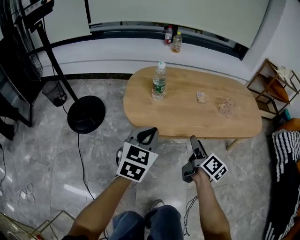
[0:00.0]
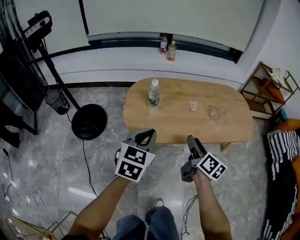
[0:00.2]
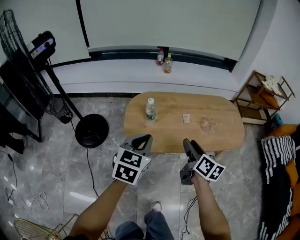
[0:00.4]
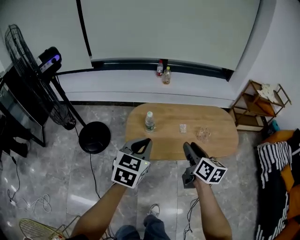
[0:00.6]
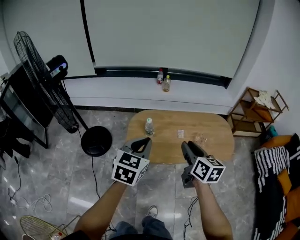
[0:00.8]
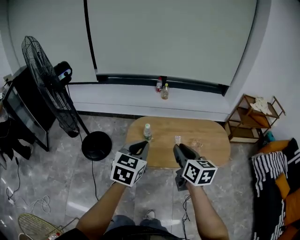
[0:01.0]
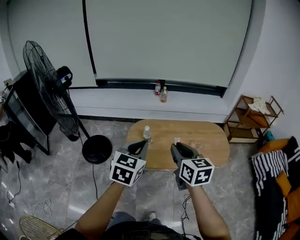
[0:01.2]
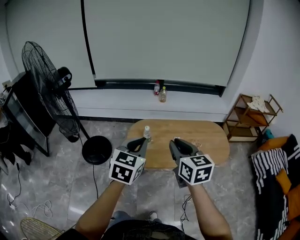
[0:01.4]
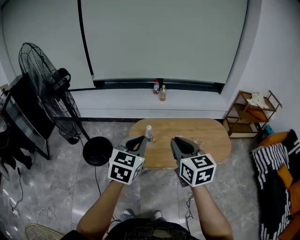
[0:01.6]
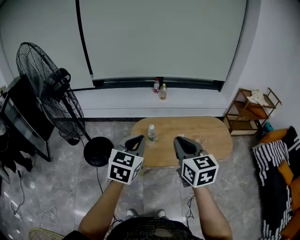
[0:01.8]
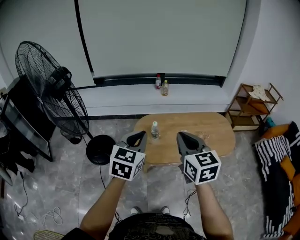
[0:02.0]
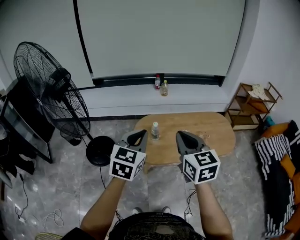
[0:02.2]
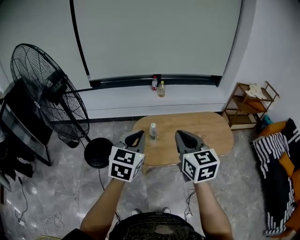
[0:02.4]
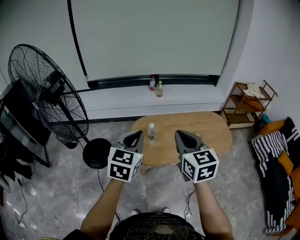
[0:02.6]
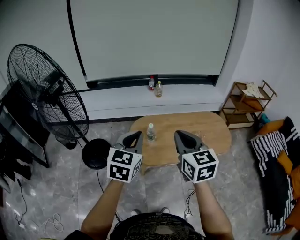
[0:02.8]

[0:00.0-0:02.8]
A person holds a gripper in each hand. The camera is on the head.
0:00.0 to 0:01.4: Both grippers travel together upward, approximately 50 cm. The right gripper twists about 50 degrees counterclockwise, seen from behind, and closes its fingers.
0:01.4 to 0:02.8: Both grippers move to the left, about 5 cm.

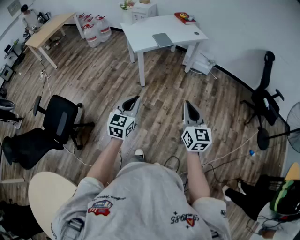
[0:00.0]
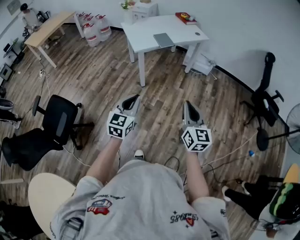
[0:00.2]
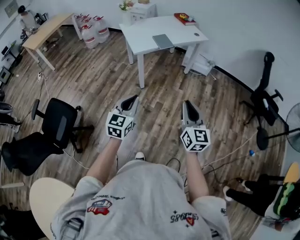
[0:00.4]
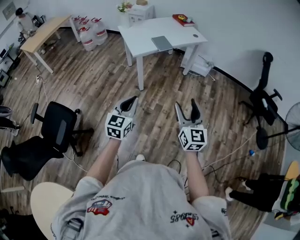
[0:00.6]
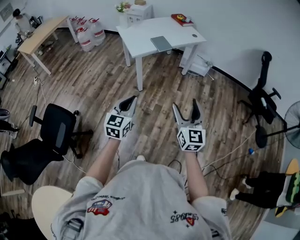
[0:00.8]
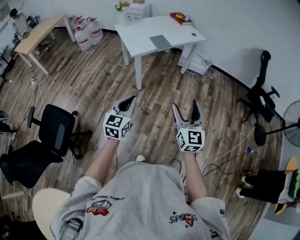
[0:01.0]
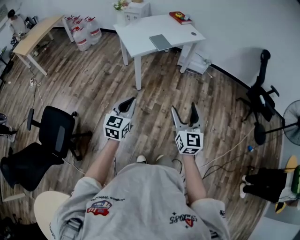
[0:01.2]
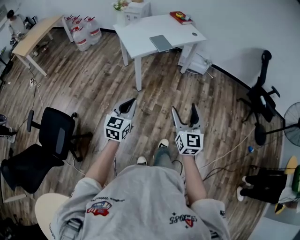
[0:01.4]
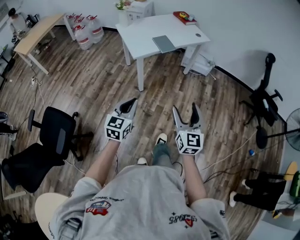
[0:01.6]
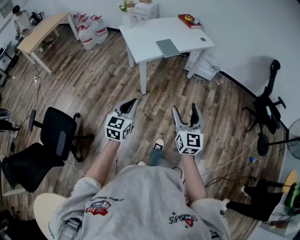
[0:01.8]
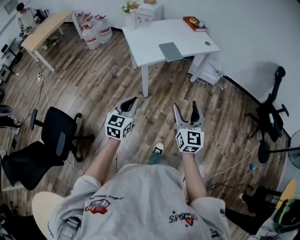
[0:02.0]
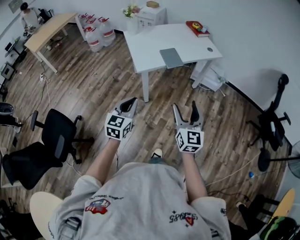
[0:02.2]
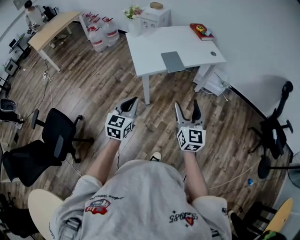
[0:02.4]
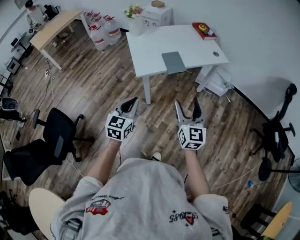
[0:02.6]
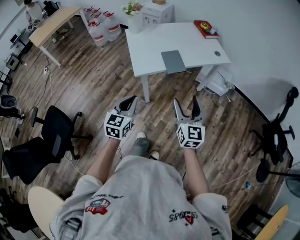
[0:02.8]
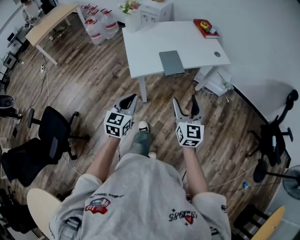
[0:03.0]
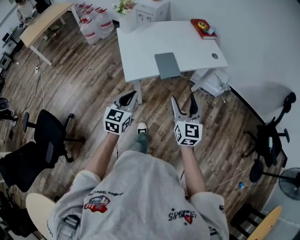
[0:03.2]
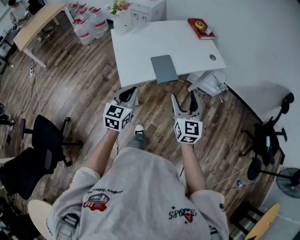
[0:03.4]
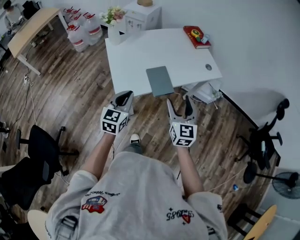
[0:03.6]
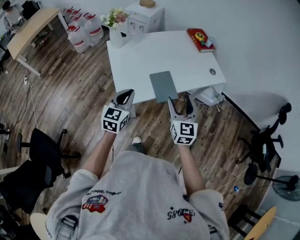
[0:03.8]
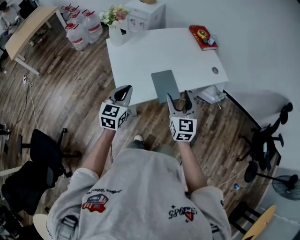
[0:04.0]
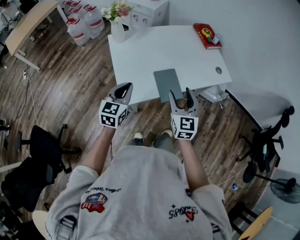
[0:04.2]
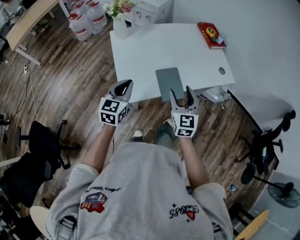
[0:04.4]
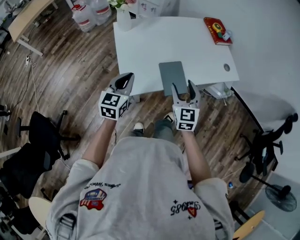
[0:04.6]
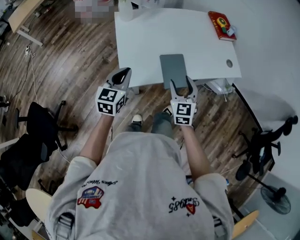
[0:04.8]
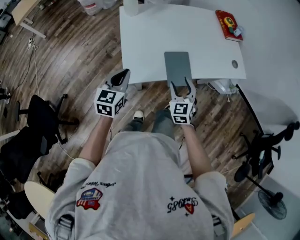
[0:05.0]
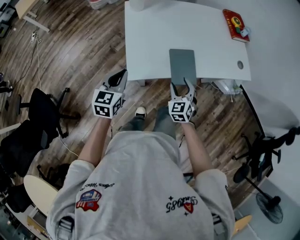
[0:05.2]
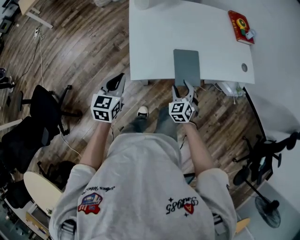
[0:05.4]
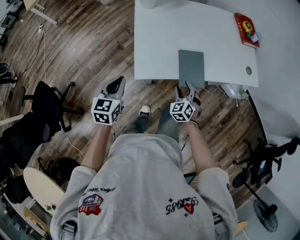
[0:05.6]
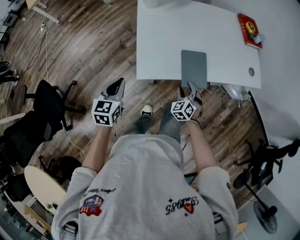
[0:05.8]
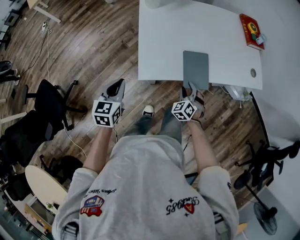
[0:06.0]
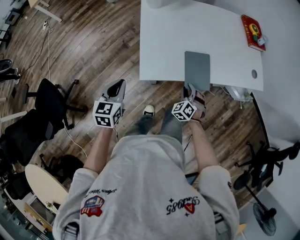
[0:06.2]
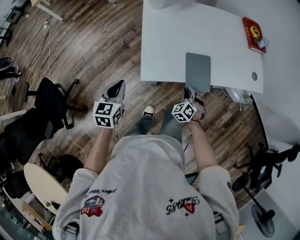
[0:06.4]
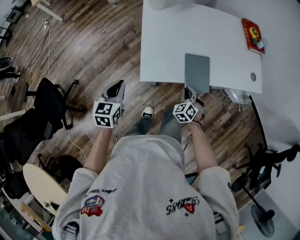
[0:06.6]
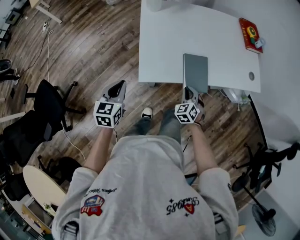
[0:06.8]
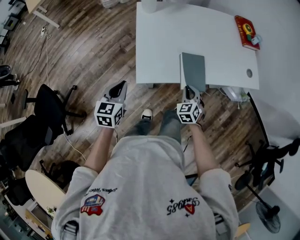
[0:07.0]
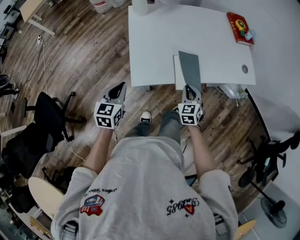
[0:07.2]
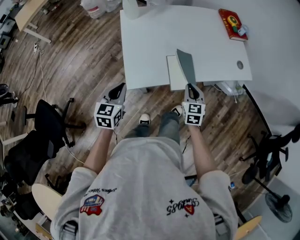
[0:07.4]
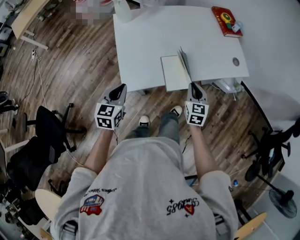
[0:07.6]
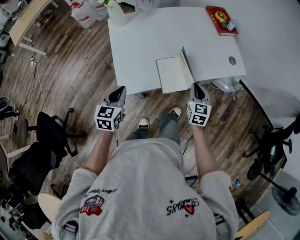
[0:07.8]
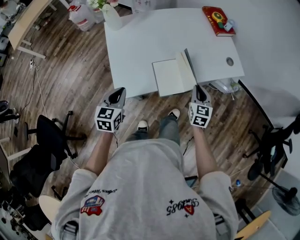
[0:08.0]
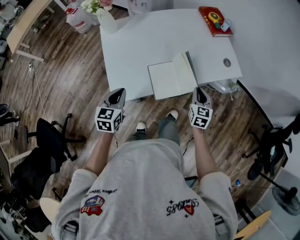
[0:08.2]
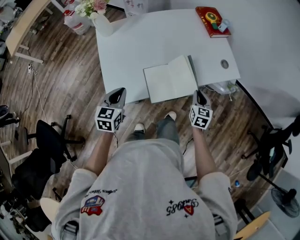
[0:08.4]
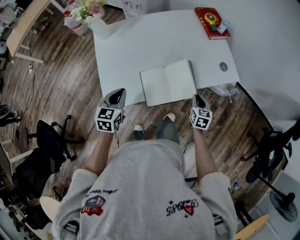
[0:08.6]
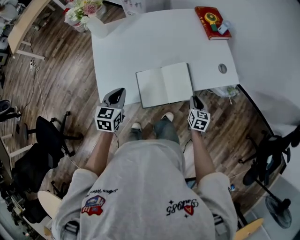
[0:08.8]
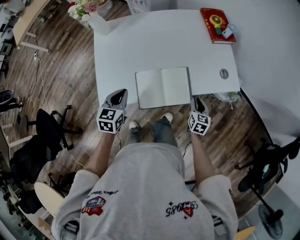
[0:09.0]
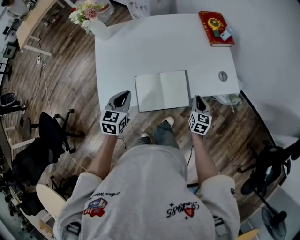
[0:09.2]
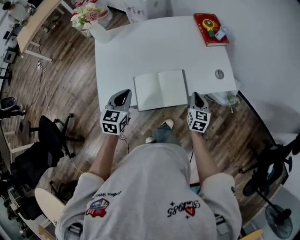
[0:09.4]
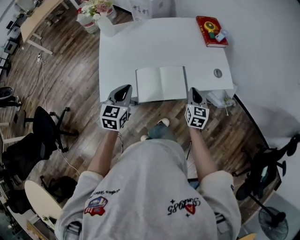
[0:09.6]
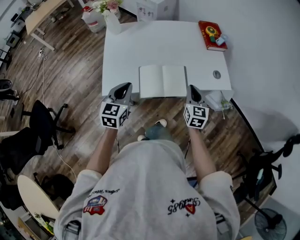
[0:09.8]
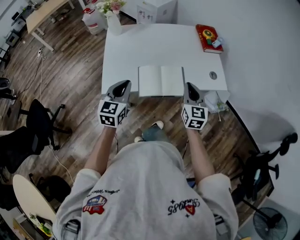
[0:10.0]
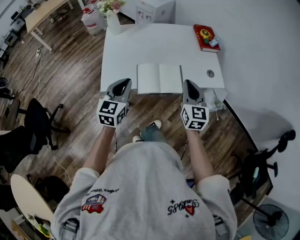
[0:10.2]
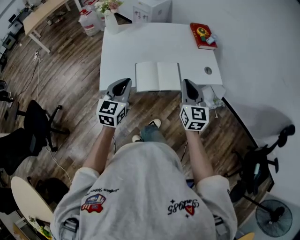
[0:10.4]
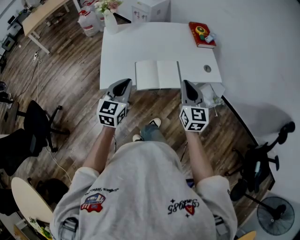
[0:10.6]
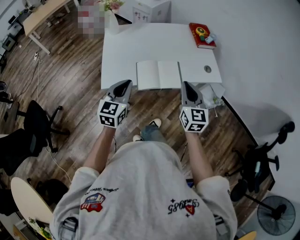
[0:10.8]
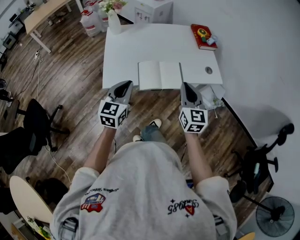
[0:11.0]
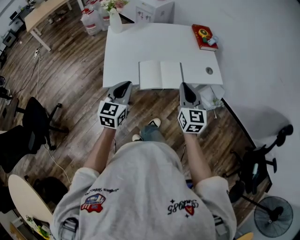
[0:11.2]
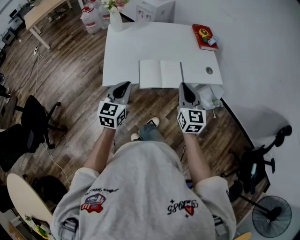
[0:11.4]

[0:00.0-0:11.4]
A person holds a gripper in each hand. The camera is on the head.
0:00.0 to 0:01.4: The left gripper moves forward and to the left, roughly 15 cm. Meanwhile the right gripper moves to the left and forward, about 15 cm, and opens up.
0:01.4 to 0:02.8: Both grippers move forward, some 35 cm.
0:02.8 to 0:04.2: The pair of grippers is taken forward, some 40 cm.
0:04.2 to 0:05.6: The right gripper moves downward, some 25 cm, and turns by approximately 50 degrees, while the left gripper travels downward, to the left and backward by some 15 cm, and changes its angle by approximately 20 degrees.
0:05.6 to 0:07.2: The right gripper moves upward, approximately 5 cm, changes its angle by some 20 degrees, and closes its fingers.
0:07.2 to 0:08.6: The grippers both shift to the right and forward by about 25 cm. The right gripper rotates about 30 degrees.
0:08.6 to 0:10.0: The left gripper goes roughly 20 cm backward, upward and to the right, while the right gripper is displaced upward by roughly 25 cm, and turns by roughly 30 degrees.
0:10.0 to 0:11.4: The right gripper shifts some 10 cm backward and upward. Meanwhile the left gripper shifts roughly 10 cm backward.

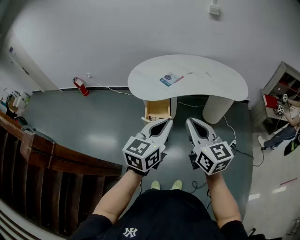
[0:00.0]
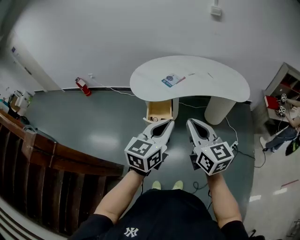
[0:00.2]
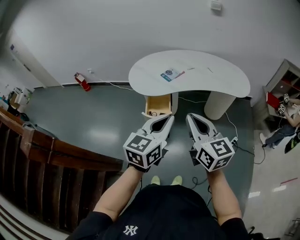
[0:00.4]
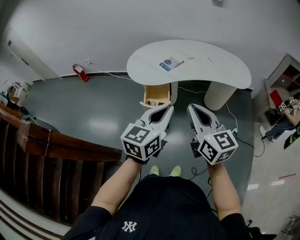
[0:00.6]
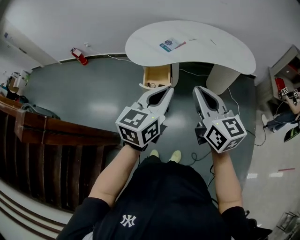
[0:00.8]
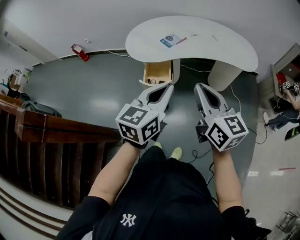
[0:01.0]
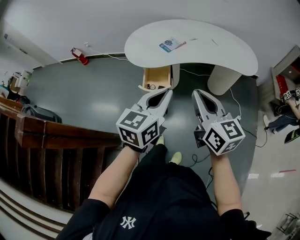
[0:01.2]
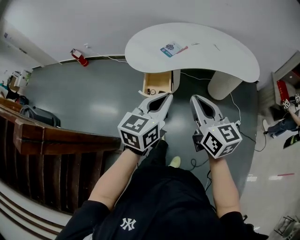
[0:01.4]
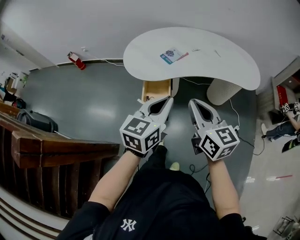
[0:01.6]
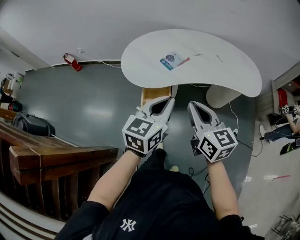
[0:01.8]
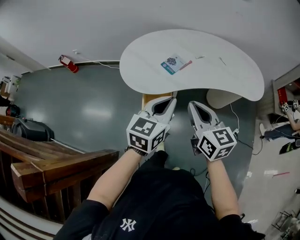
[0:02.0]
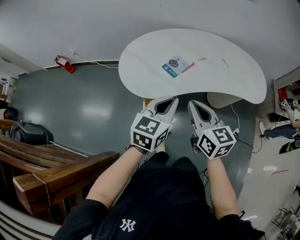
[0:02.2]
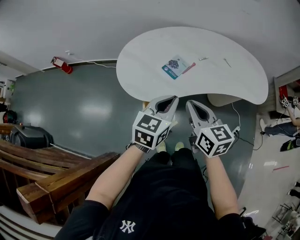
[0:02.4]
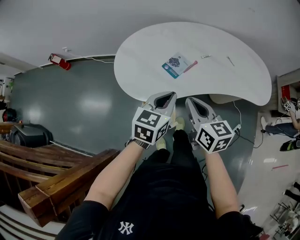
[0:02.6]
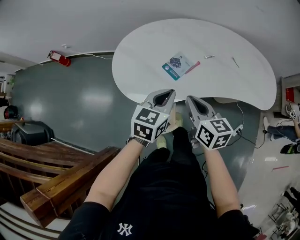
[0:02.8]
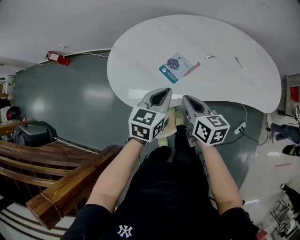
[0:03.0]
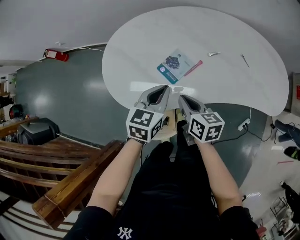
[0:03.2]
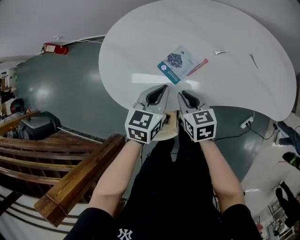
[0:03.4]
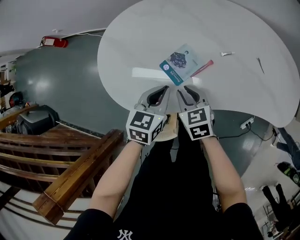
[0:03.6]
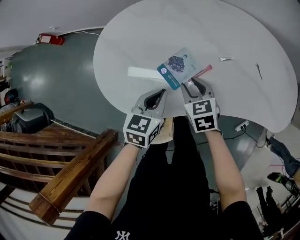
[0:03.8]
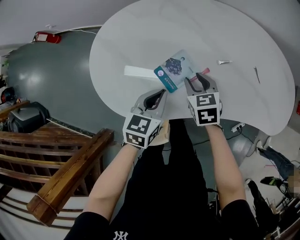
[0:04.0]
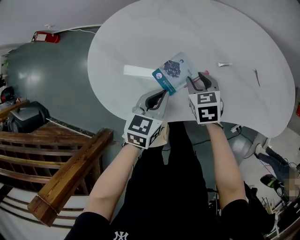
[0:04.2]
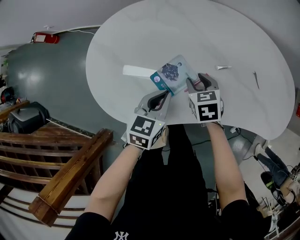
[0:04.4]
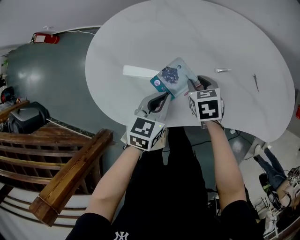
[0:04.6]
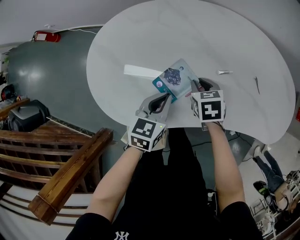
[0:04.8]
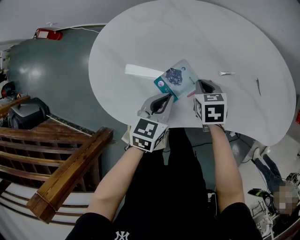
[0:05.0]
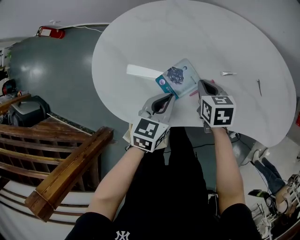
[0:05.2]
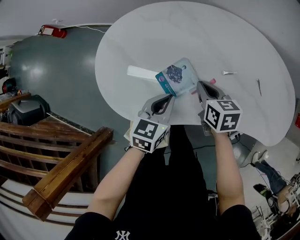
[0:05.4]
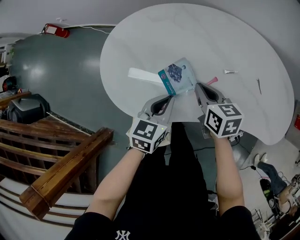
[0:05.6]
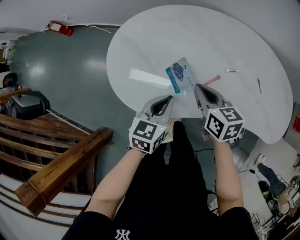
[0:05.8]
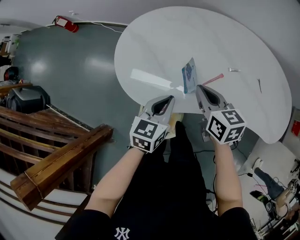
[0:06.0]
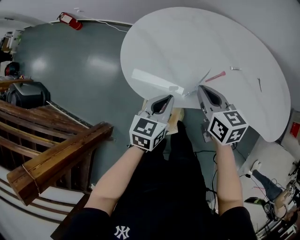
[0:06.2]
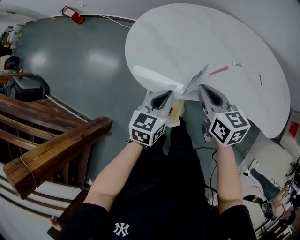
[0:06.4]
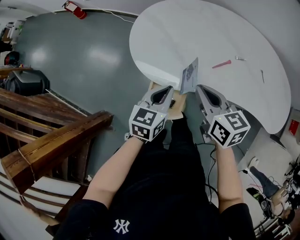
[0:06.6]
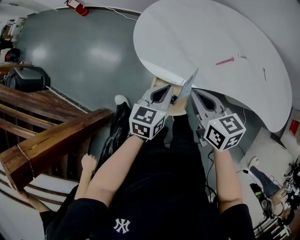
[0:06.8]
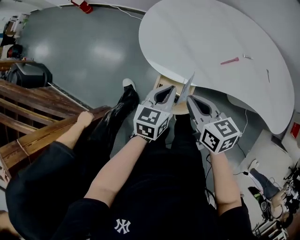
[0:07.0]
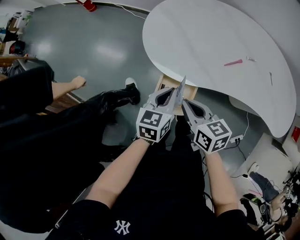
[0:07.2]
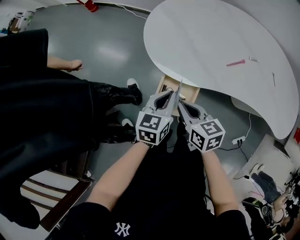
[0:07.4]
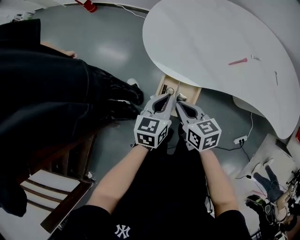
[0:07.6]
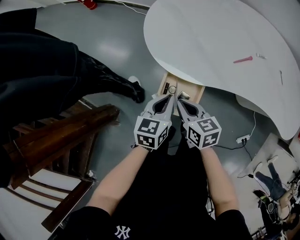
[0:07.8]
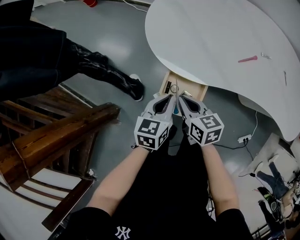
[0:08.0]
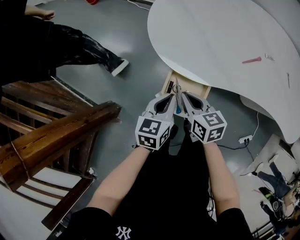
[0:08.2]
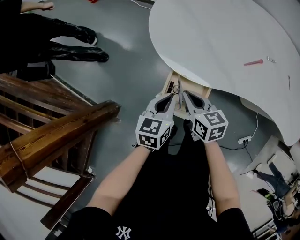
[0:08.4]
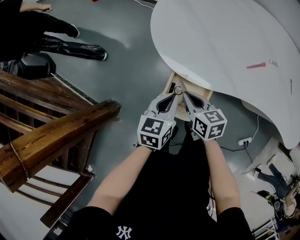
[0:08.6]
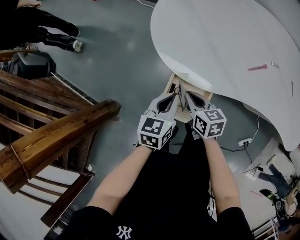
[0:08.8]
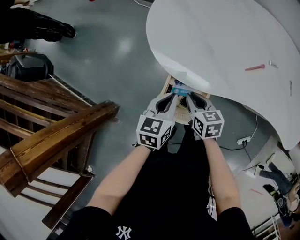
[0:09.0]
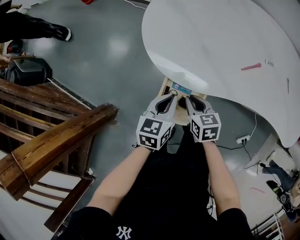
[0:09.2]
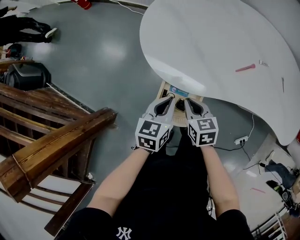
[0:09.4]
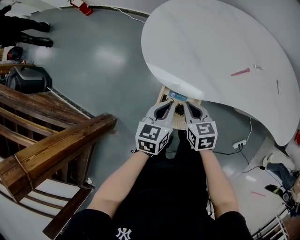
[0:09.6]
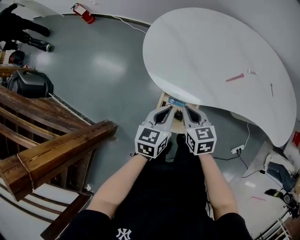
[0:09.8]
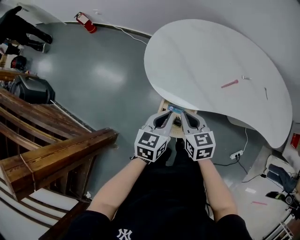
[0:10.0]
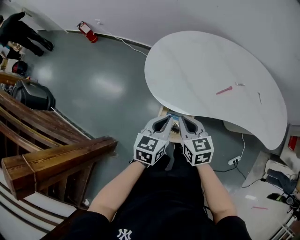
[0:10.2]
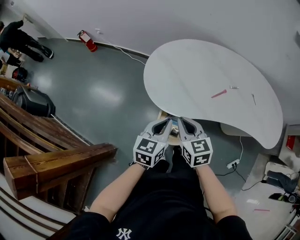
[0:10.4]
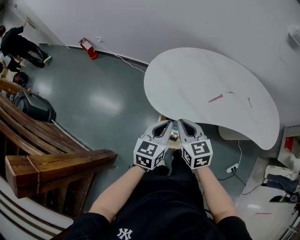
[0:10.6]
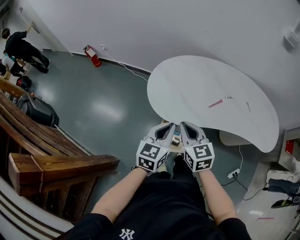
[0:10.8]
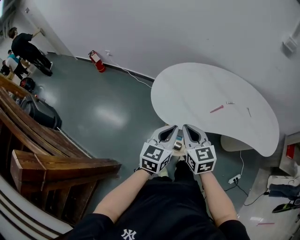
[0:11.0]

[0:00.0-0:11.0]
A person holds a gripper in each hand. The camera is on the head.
0:00.0 to 0:01.6: Both grippers move forward and downward, approximately 15 cm.
0:01.6 to 0:03.2: Both grippers move forward and downward, some 40 cm. The right gripper swivels roughly 30 degrees.
0:03.2 to 0:04.8: The right gripper moves forward and downward, roughly 20 cm, and angles its fingers downward, by roughly 30 degrees; the left gripper shifts approximately 10 cm downward and forward.
0:04.8 to 0:06.2: The right gripper travels upward, backward and to the left by about 25 cm, points its fingers approximately 30 degrees further upward, and closes; the left gripper is displaced backward, to the left and upward by about 15 cm.
0:06.2 to 0:07.8: The right gripper goes approximately 25 cm to the left, backward and downward; the left gripper goes approximately 15 cm to the left, backward and downward.
0:07.8 to 0:09.4: The left gripper ends up approximately 5 cm from where it was; the right gripper travels downward and forward by some 10 cm.
0:09.4 to 0:11.0: The grippers both shift upward by some 25 cm. The left gripper swivels some 20 degrees; the right gripper changes its angle by some 30 degrees.
